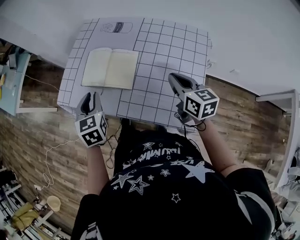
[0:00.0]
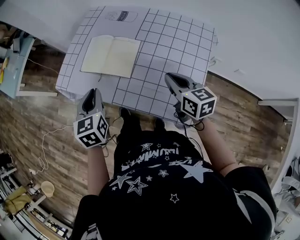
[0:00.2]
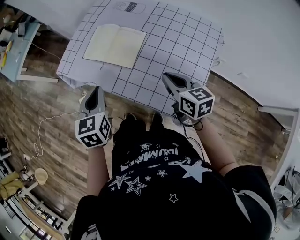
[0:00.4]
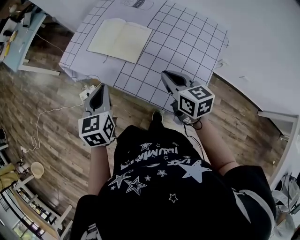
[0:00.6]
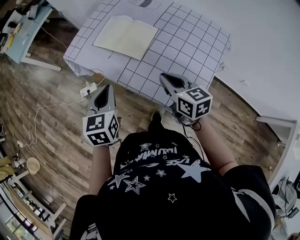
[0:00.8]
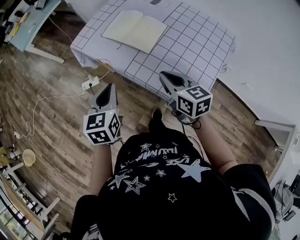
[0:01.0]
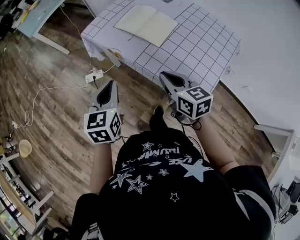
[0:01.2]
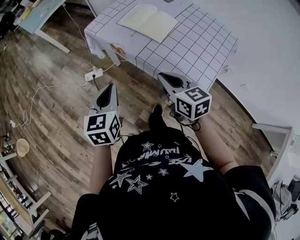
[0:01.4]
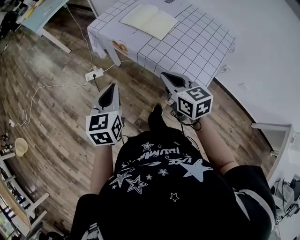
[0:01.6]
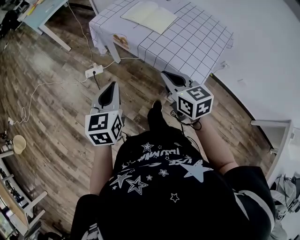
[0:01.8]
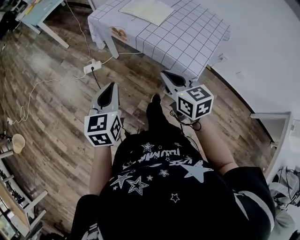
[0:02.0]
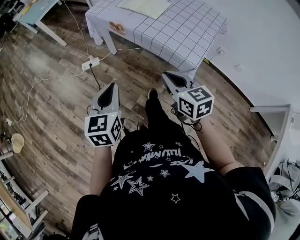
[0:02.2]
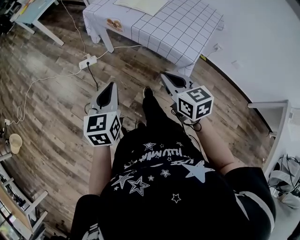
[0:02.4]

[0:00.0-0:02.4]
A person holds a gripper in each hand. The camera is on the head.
0:00.0 to 0:01.2: The right gripper heads to the left and backward, covering approximately 20 cm, and changes its angle by roughly 30 degrees. The left gripper is displaced backward by about 20 cm.
0:01.2 to 0:02.4: The two grippers go roughly 25 cm backward.

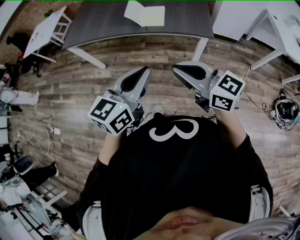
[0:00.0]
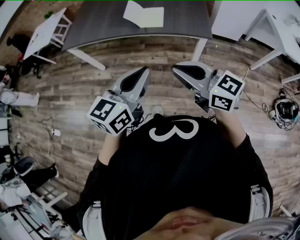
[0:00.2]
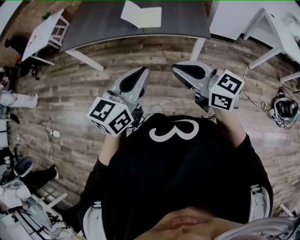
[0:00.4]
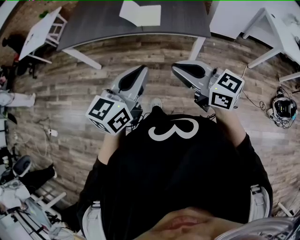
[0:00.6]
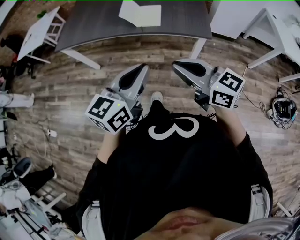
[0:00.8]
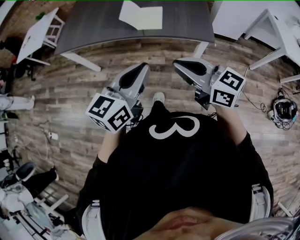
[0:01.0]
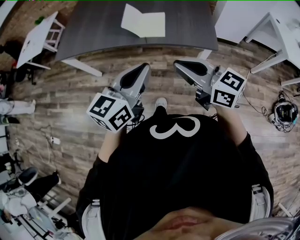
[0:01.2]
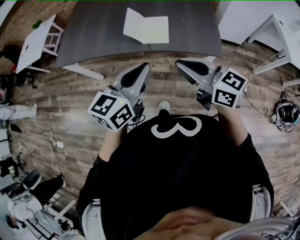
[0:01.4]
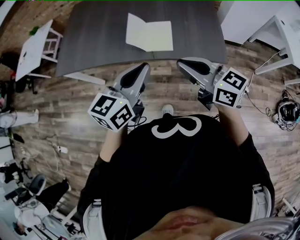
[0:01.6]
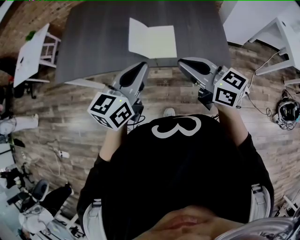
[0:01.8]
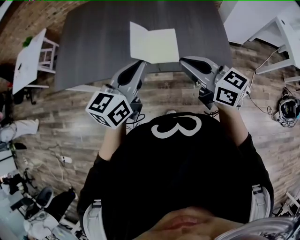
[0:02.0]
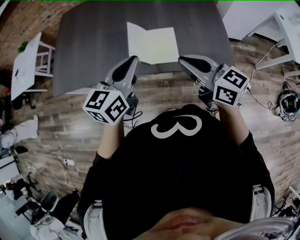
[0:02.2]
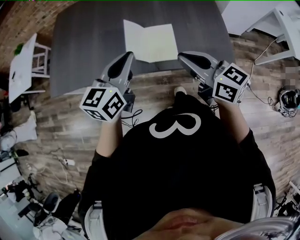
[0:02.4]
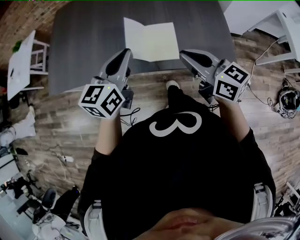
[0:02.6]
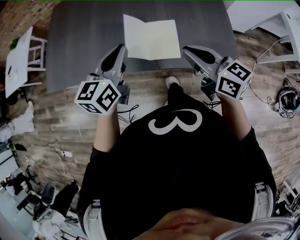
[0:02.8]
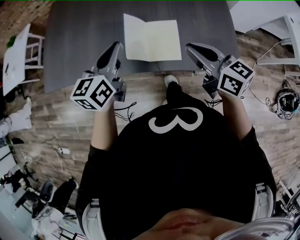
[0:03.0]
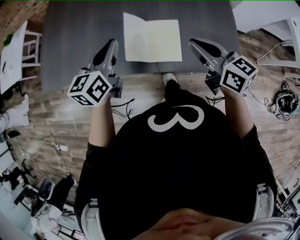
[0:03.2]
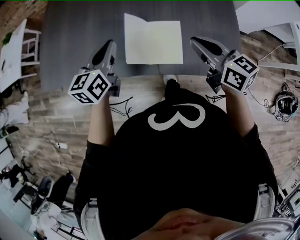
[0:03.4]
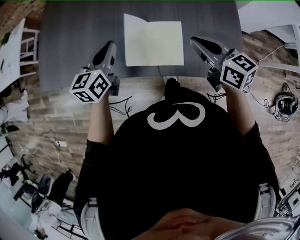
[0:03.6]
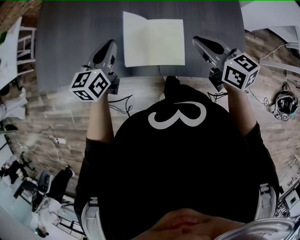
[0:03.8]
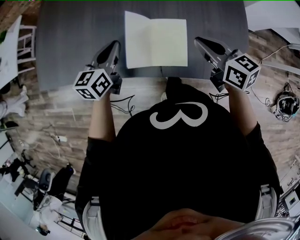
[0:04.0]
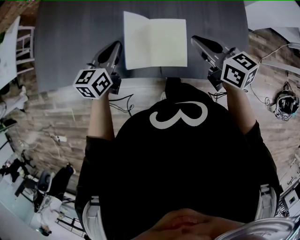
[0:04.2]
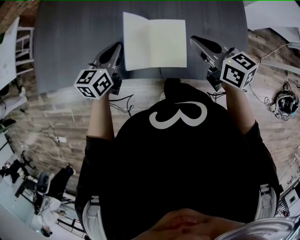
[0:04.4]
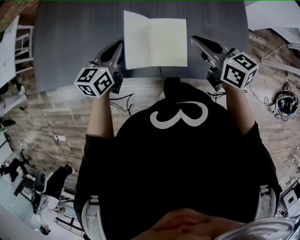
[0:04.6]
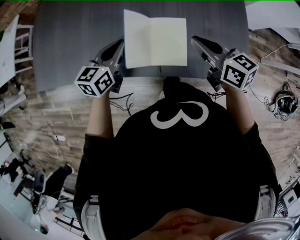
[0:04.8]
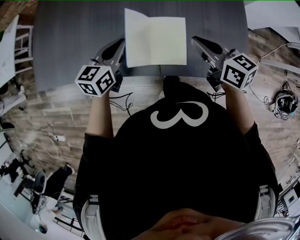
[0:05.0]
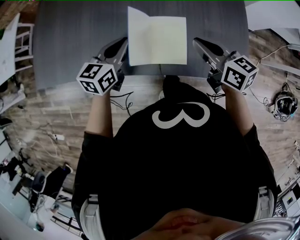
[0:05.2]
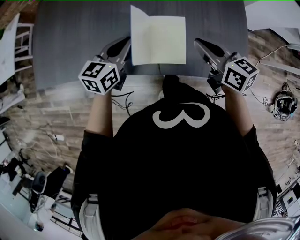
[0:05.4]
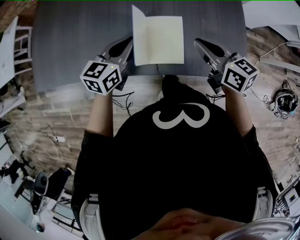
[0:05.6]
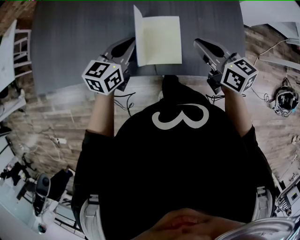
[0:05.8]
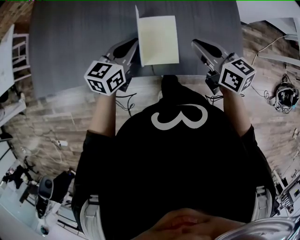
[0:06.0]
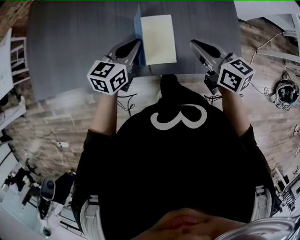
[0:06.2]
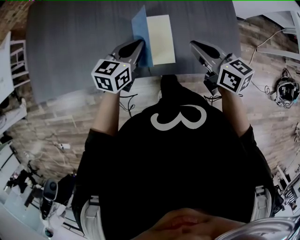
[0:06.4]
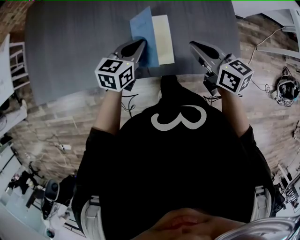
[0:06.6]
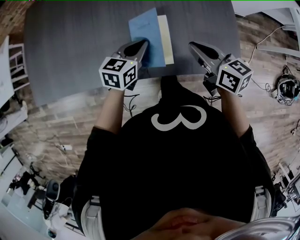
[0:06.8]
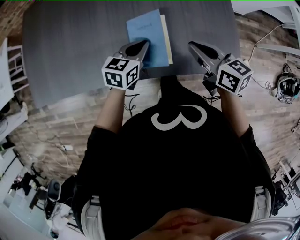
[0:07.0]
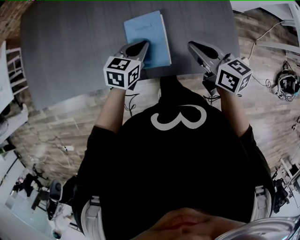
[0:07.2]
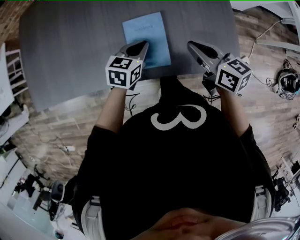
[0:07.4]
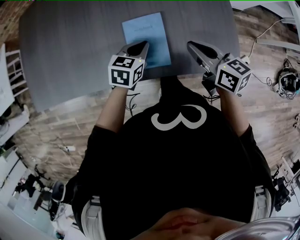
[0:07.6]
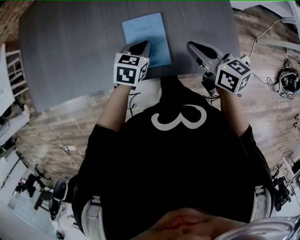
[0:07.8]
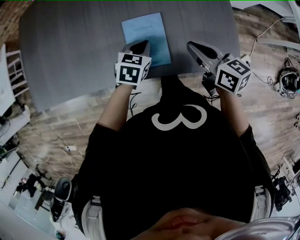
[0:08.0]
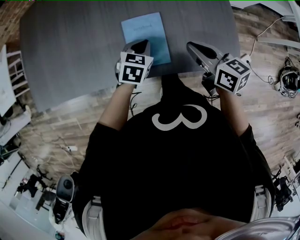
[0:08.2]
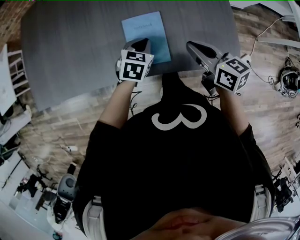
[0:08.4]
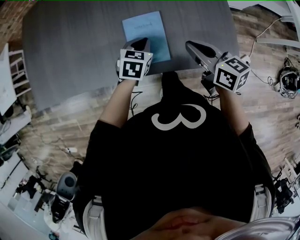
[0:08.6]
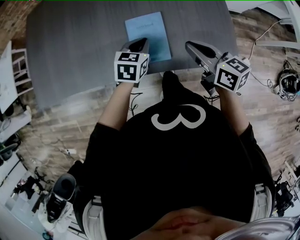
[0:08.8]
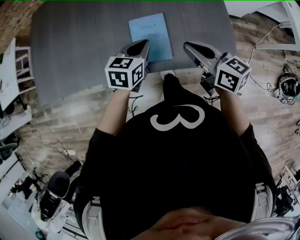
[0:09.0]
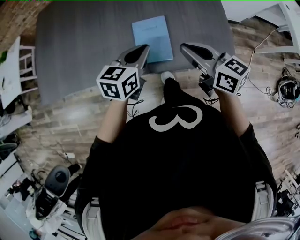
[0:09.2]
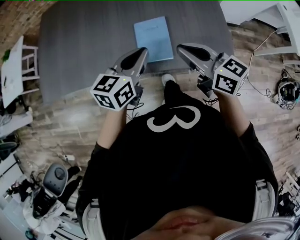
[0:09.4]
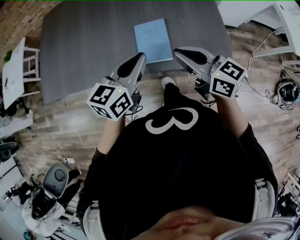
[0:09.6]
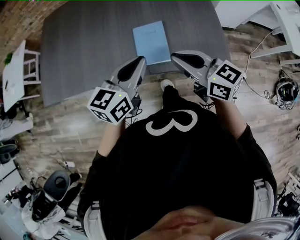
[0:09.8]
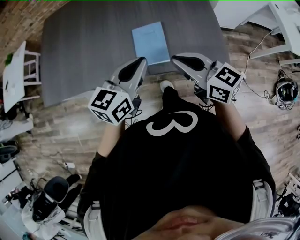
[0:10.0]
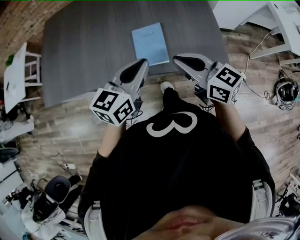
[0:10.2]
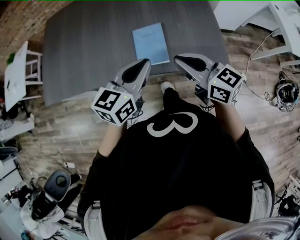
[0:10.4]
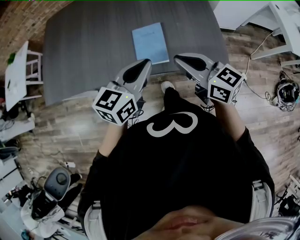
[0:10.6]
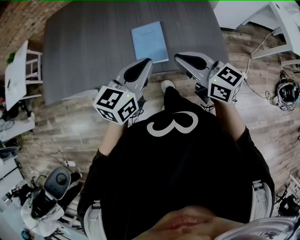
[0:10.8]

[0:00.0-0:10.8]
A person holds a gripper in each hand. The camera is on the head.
0:00.0 to 0:01.6: Both grippers travel together forward, roughly 25 cm.
0:01.6 to 0:03.0: Both grippers travel together forward, some 20 cm.
0:03.0 to 0:04.6: The right gripper travels forward and downward by approximately 10 cm. Meanwhile the left gripper heads downward and forward, covering about 15 cm.
0:04.6 to 0:06.2: The right gripper shifts by some 5 cm. The left gripper is displaced to the right by roughly 10 cm.
0:06.2 to 0:07.8: The left gripper heads downward and to the right, covering approximately 10 cm, and swivels some 20 degrees.
0:07.8 to 0:09.2: The right gripper shifts approximately 10 cm upward and to the left. Meanwhile the left gripper goes some 15 cm upward and backward, and rotates some 20 degrees.
0:09.2 to 0:10.8: The right gripper goes roughly 5 cm backward; the left gripper is displaced backward and upward by roughly 10 cm.

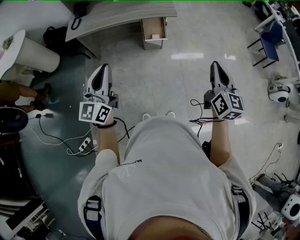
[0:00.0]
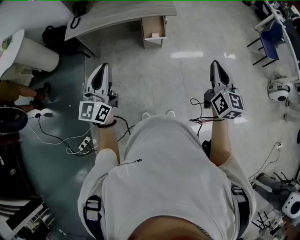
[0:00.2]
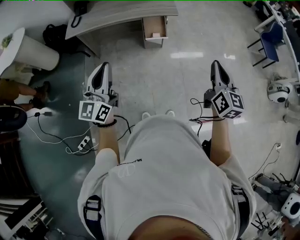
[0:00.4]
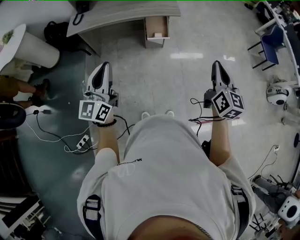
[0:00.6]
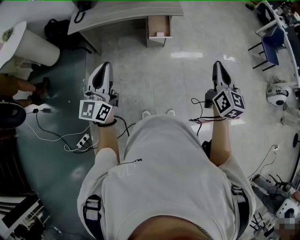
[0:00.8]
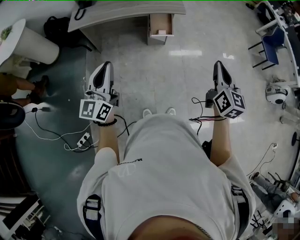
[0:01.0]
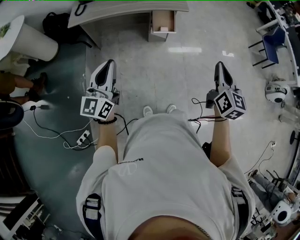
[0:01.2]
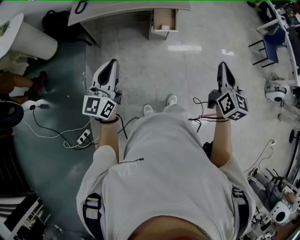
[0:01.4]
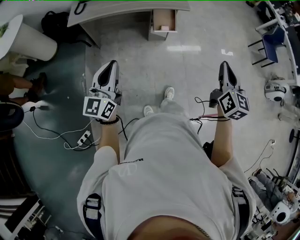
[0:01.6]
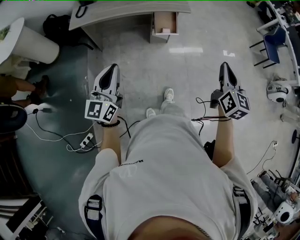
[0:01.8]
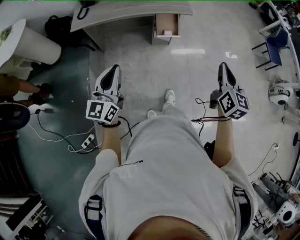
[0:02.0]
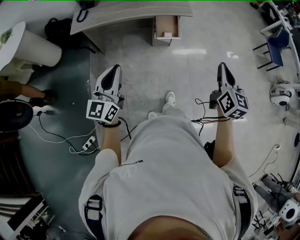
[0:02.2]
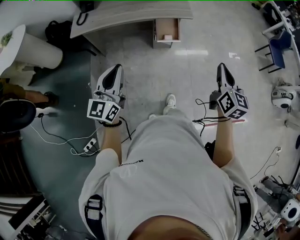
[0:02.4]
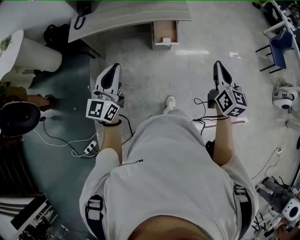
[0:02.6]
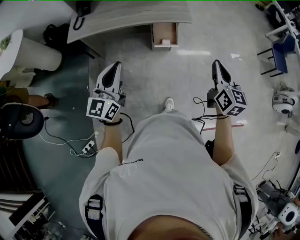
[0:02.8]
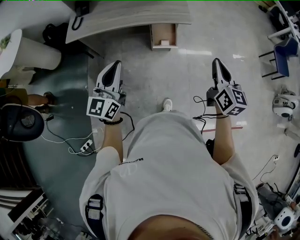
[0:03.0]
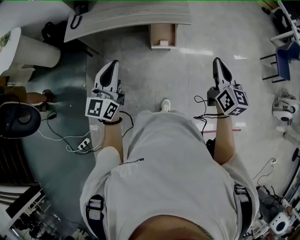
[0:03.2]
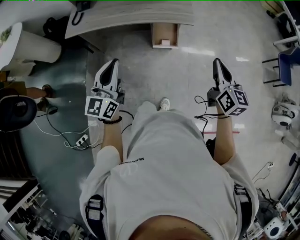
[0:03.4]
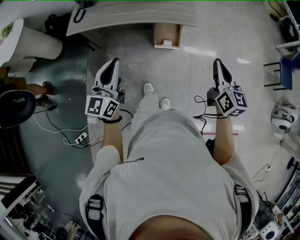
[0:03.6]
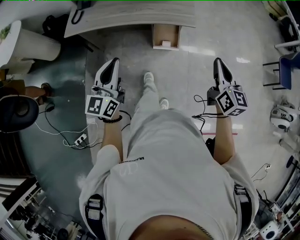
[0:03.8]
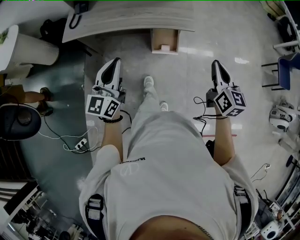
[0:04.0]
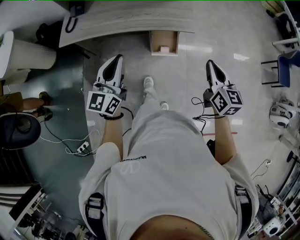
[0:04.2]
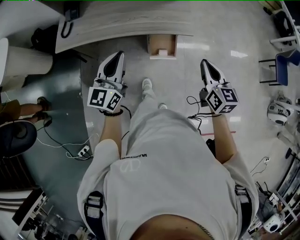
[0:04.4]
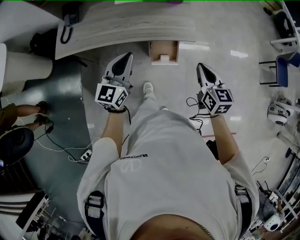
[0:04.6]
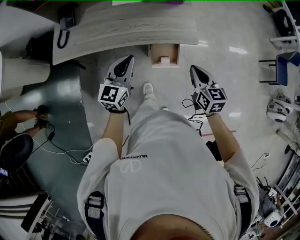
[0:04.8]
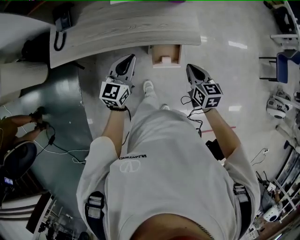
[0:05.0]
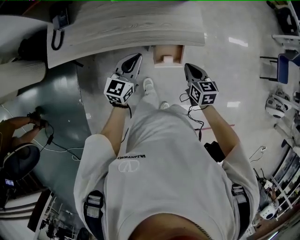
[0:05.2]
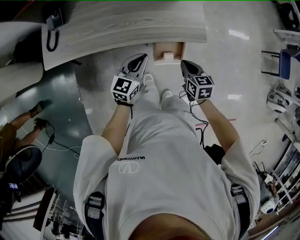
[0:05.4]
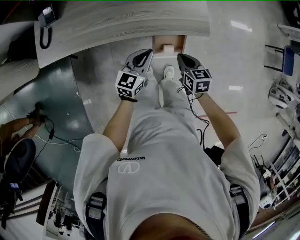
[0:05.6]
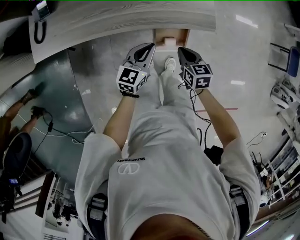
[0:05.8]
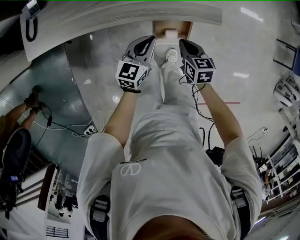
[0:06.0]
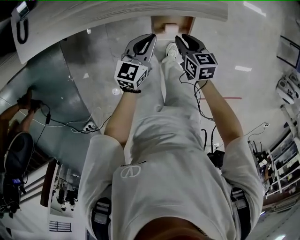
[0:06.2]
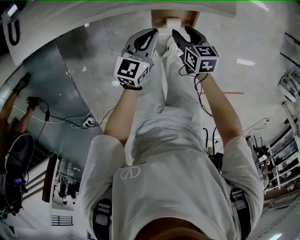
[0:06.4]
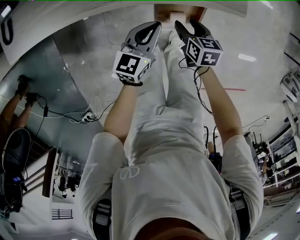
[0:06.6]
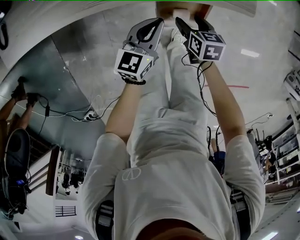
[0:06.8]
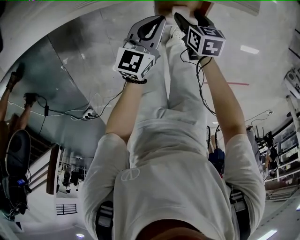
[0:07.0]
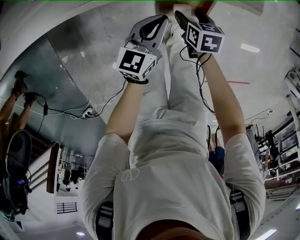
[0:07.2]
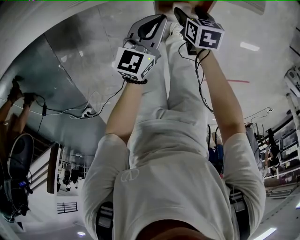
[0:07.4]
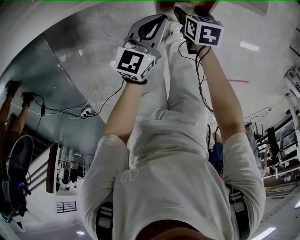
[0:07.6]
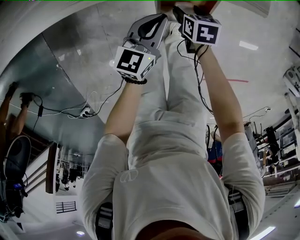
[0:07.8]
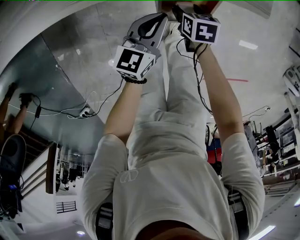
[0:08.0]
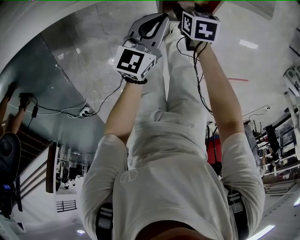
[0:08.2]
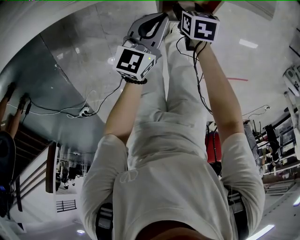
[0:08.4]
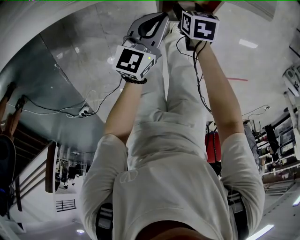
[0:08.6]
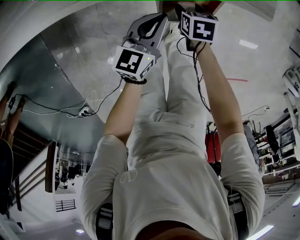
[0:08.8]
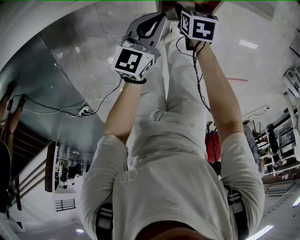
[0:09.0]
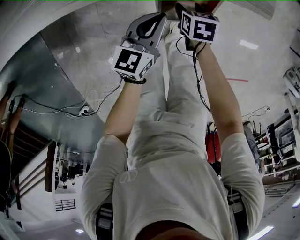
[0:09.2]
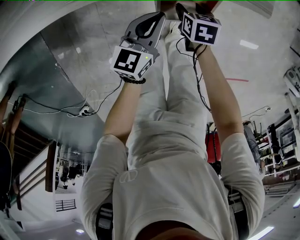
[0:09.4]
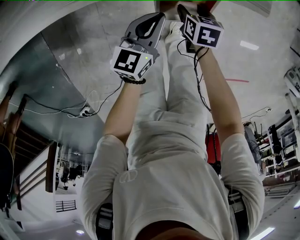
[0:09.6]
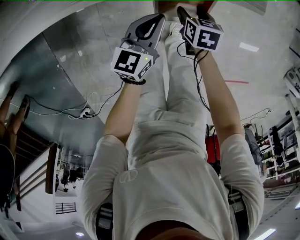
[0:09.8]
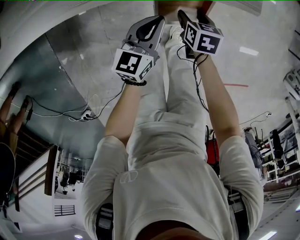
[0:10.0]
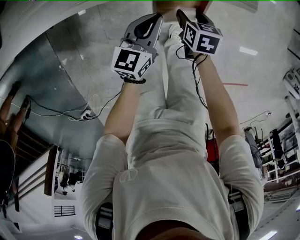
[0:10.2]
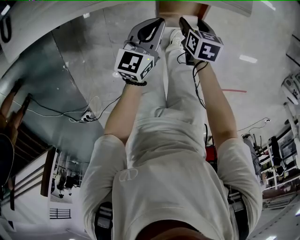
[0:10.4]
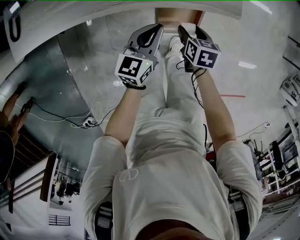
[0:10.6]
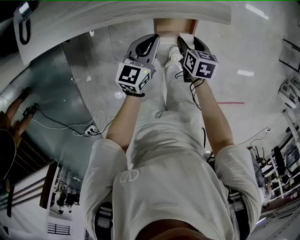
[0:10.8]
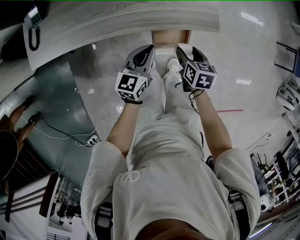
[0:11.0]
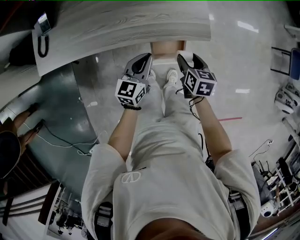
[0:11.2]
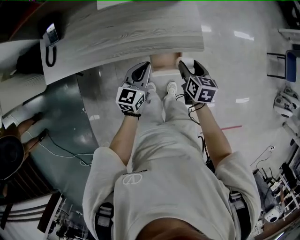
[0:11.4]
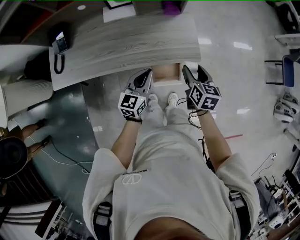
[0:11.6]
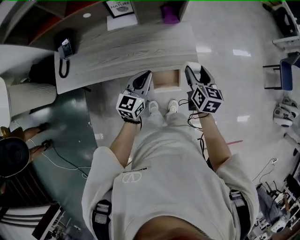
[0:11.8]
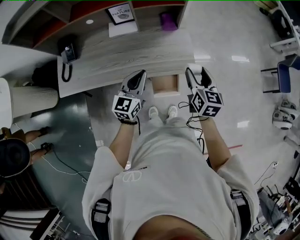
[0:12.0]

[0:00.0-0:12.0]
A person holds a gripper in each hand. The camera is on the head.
0:00.0 to 0:01.6: The right gripper is displaced to the left by about 10 cm, while the left gripper shifts some 10 cm to the left and downward.
0:01.6 to 0:03.0: The left gripper moves forward and to the right, some 20 cm; the right gripper travels forward by some 20 cm.
0:03.0 to 0:04.4: Both grippers travel together forward, approximately 20 cm.
0:04.4 to 0:06.0: Both grippers travel together downward and forward, about 40 cm. The right gripper swivels approximately 30 degrees. The left gripper changes its angle by some 30 degrees.
0:06.0 to 0:07.6: The right gripper travels downward by some 20 cm, swivels some 20 degrees, and opens. The left gripper goes roughly 15 cm downward.
0:07.6 to 0:09.0: The grippers make only small movements.
0:09.0 to 0:10.4: The grippers both shift upward by about 10 cm.
0:10.4 to 0:12.0: The grippers both shift upward by approximately 40 cm. The left gripper turns by approximately 20 degrees. The right gripper points its fingers about 40 degrees further upward.
